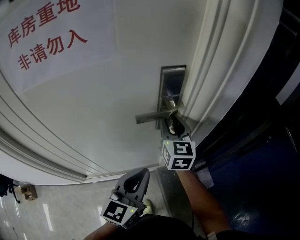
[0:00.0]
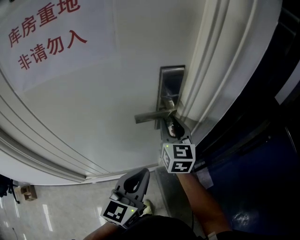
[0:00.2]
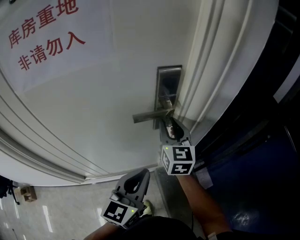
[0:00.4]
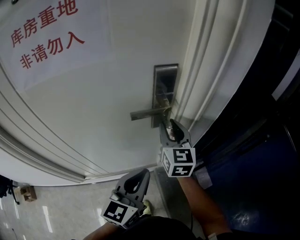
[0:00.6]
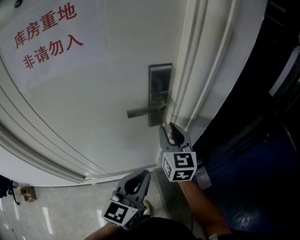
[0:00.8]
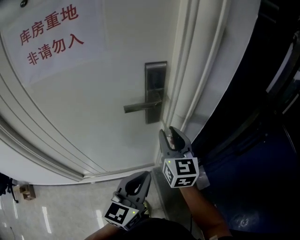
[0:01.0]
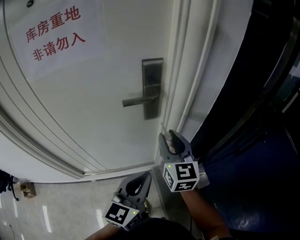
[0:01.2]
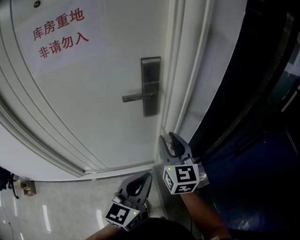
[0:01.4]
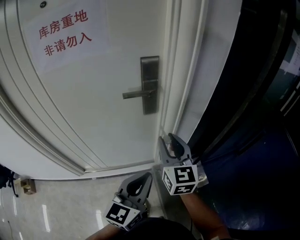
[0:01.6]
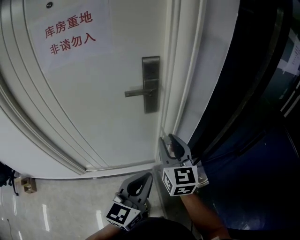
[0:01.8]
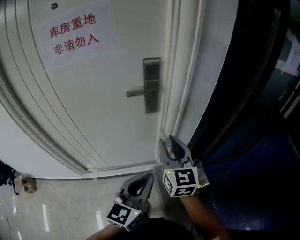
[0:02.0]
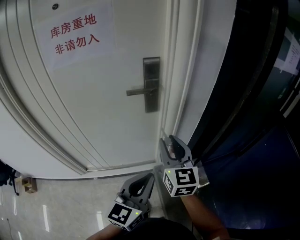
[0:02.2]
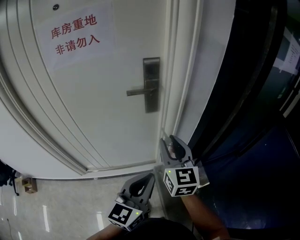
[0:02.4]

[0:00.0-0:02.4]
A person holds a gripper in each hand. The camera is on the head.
0:00.0 to 0:01.2: The two grippers go roughly 15 cm backward and to the right.
0:01.2 to 0:02.4: Both grippers move backward, approximately 10 cm.

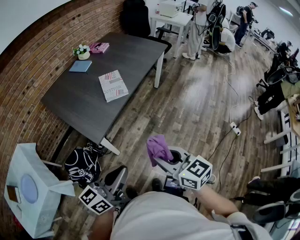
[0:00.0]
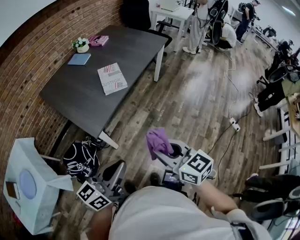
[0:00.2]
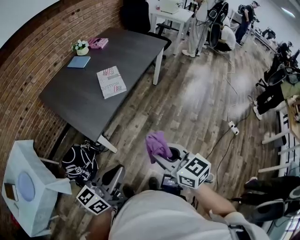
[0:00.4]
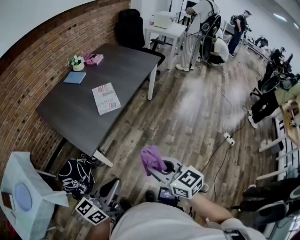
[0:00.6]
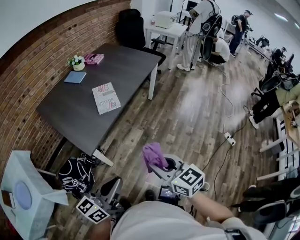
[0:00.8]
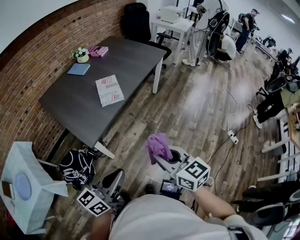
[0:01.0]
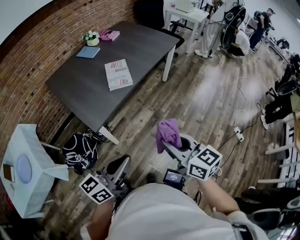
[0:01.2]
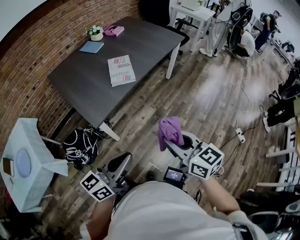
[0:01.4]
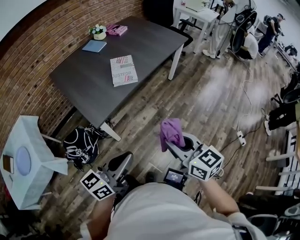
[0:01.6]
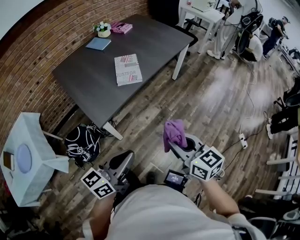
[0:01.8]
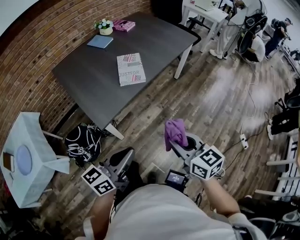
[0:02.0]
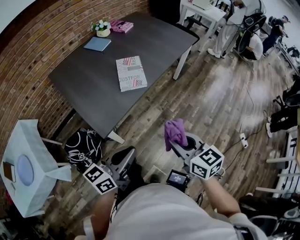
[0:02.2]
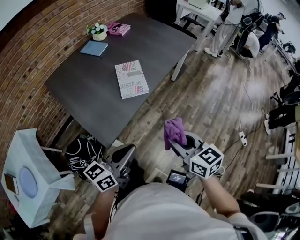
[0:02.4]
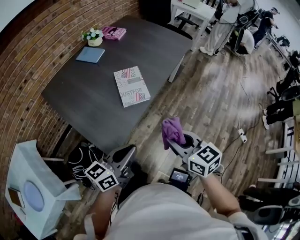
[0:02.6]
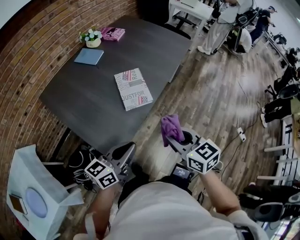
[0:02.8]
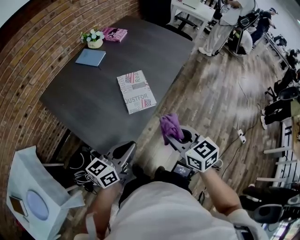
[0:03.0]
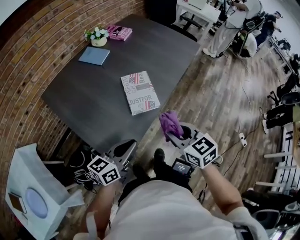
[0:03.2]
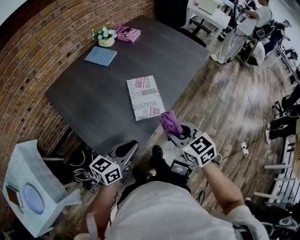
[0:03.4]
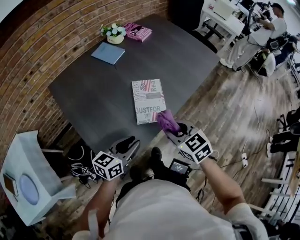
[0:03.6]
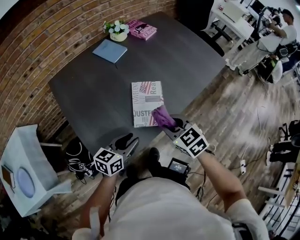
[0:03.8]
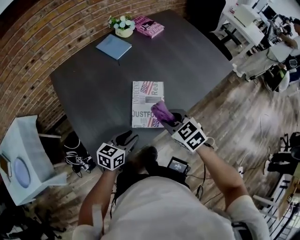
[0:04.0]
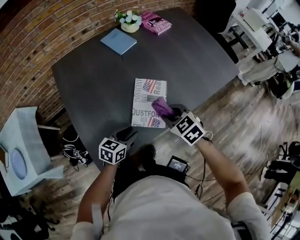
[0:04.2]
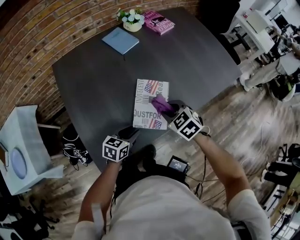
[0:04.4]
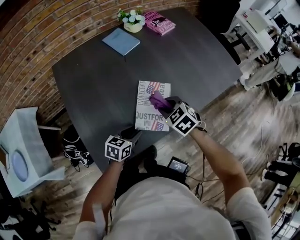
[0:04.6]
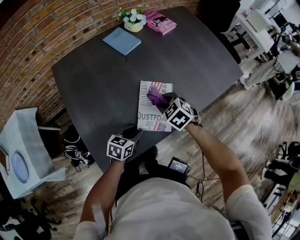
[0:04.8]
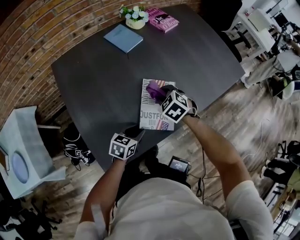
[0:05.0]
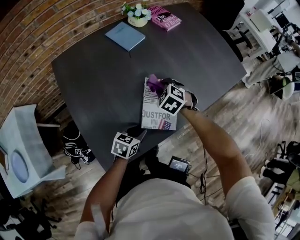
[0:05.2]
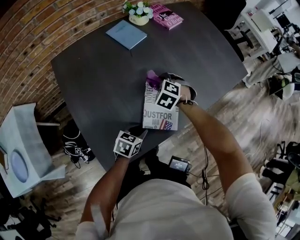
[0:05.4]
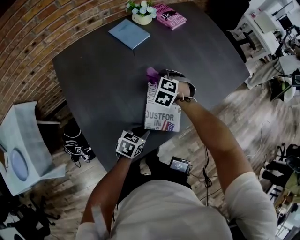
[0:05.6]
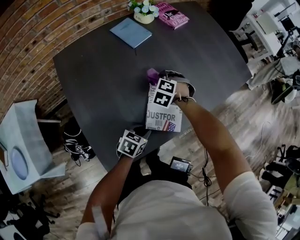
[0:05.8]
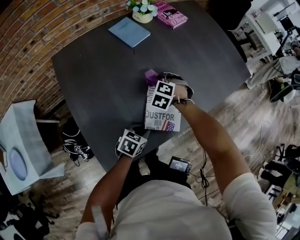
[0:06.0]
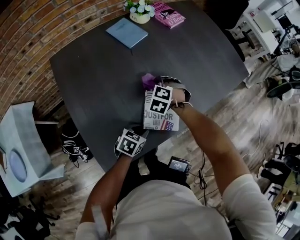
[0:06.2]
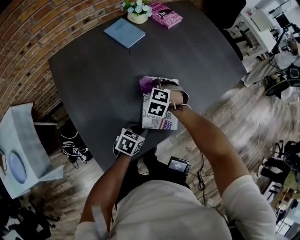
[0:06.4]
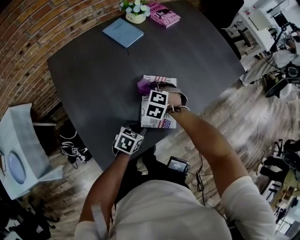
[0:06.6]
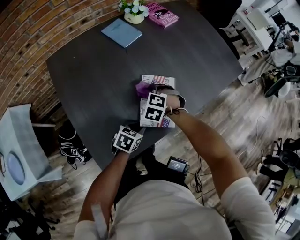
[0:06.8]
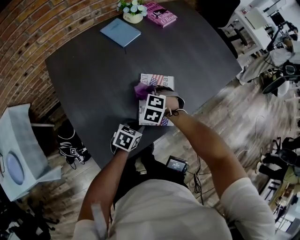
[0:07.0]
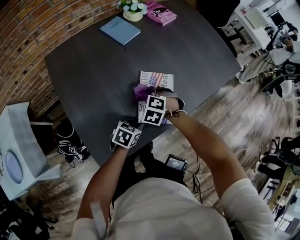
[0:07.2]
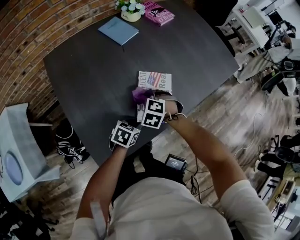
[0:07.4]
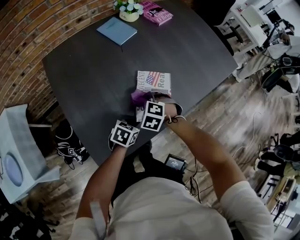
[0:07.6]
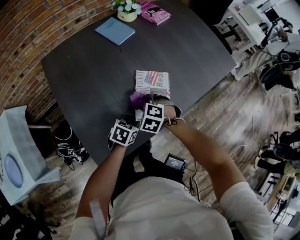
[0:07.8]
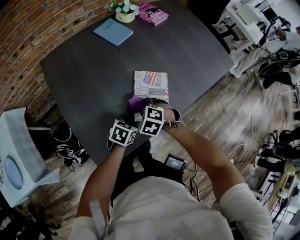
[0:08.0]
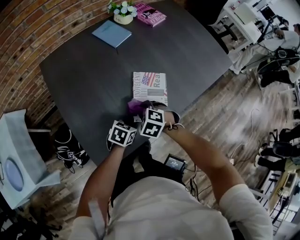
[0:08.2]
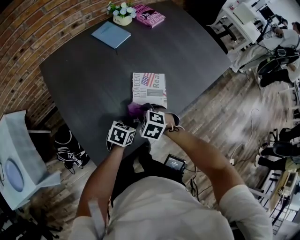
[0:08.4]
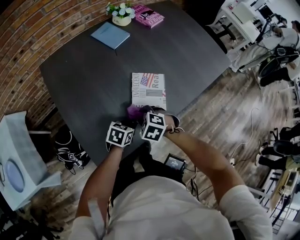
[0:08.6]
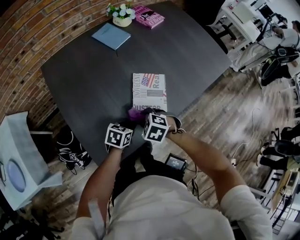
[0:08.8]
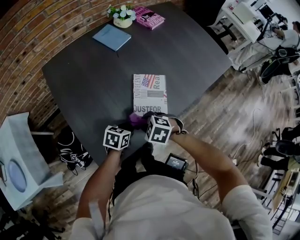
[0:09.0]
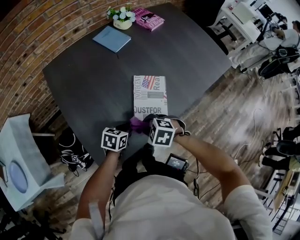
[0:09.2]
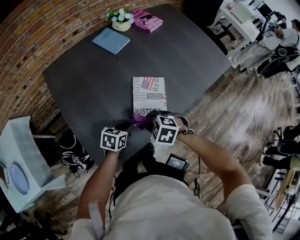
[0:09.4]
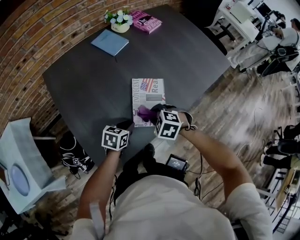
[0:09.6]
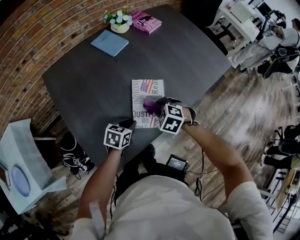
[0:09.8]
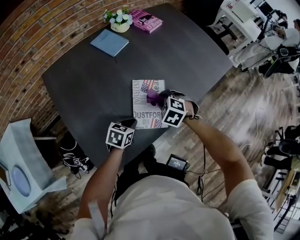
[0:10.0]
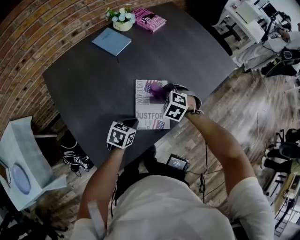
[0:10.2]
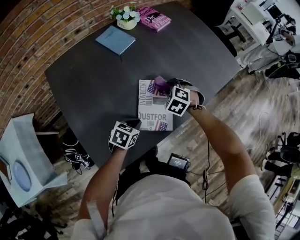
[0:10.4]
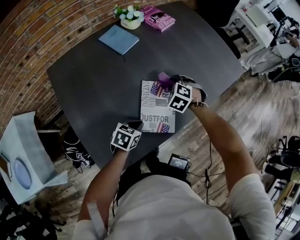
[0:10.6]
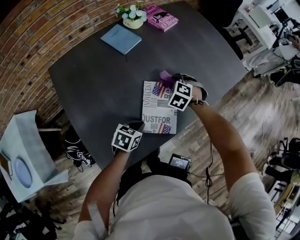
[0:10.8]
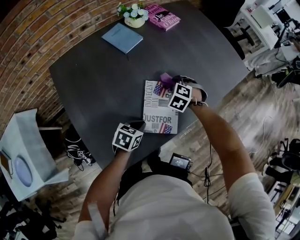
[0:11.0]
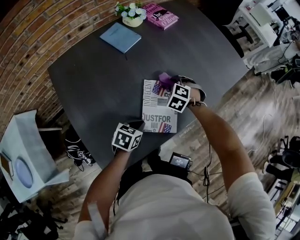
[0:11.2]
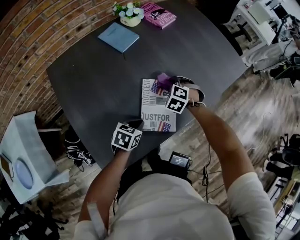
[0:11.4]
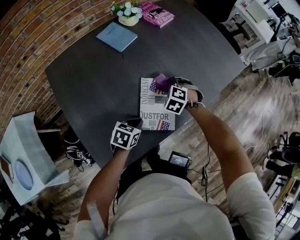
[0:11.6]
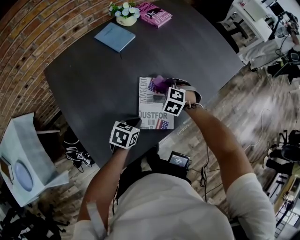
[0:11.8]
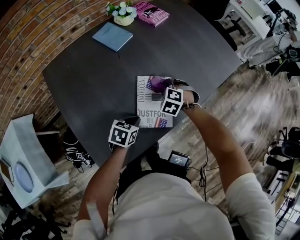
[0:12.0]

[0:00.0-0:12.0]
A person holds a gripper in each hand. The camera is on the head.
0:00.0 to 0:01.6: The right gripper moves to the right and forward, about 10 cm, while the left gripper travels to the right by some 5 cm.
0:01.6 to 0:03.0: Both grippers move forward and to the left, about 30 cm.
0:03.0 to 0:04.4: The right gripper heads forward and downward, covering some 30 cm, and changes its angle by roughly 50 degrees, while the left gripper shifts about 25 cm downward and forward, angles its fingers downward, by approximately 30 degrees, and opens its fingers.
0:04.4 to 0:06.0: The right gripper shifts by approximately 20 cm, and changes its angle by approximately 40 degrees.
0:06.0 to 0:07.6: The right gripper heads backward, covering about 10 cm.
0:07.6 to 0:09.0: The right gripper moves roughly 10 cm, and turns by some 20 degrees.
0:09.0 to 0:10.4: The left gripper changes place by some 5 cm, while the right gripper shifts by some 25 cm, and rotates roughly 30 degrees.
0:10.4 to 0:12.0: The grippers make only small movements.

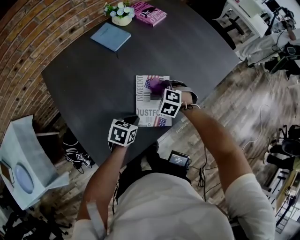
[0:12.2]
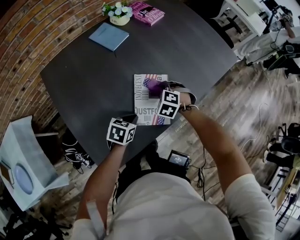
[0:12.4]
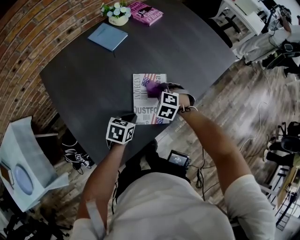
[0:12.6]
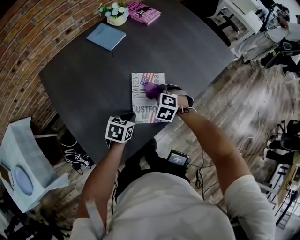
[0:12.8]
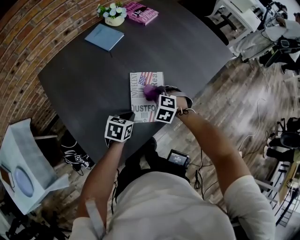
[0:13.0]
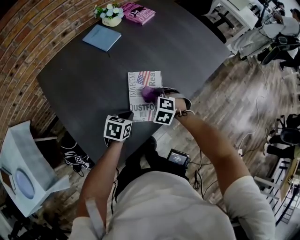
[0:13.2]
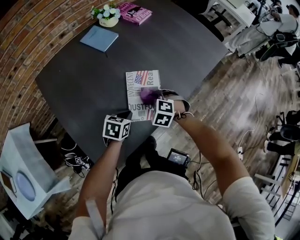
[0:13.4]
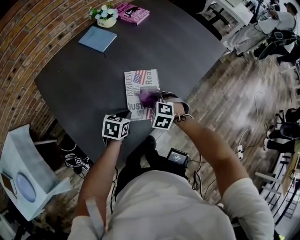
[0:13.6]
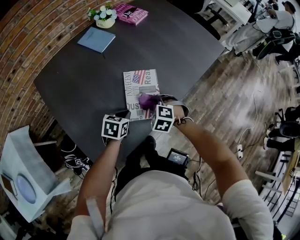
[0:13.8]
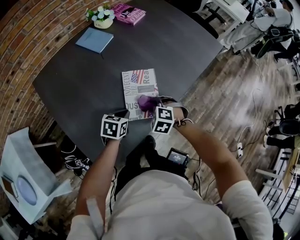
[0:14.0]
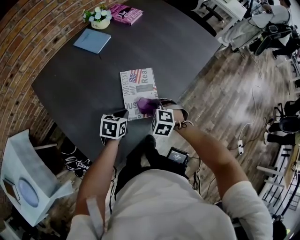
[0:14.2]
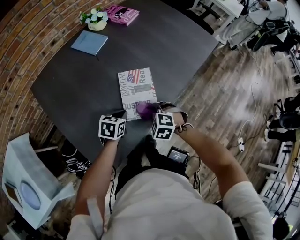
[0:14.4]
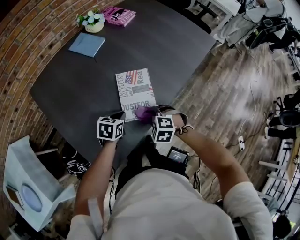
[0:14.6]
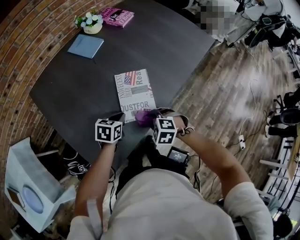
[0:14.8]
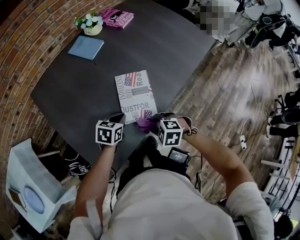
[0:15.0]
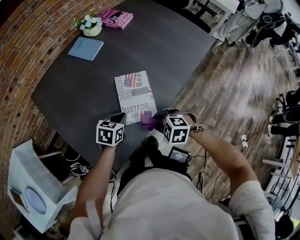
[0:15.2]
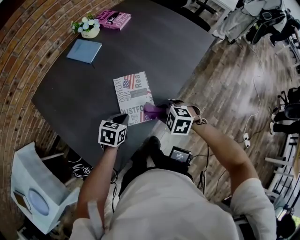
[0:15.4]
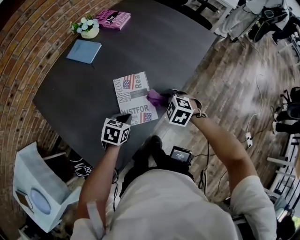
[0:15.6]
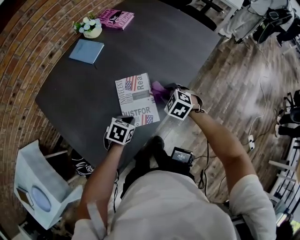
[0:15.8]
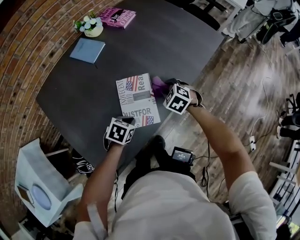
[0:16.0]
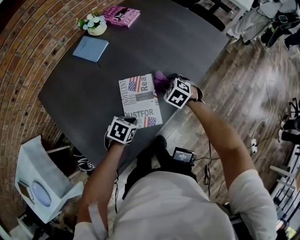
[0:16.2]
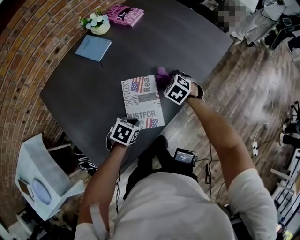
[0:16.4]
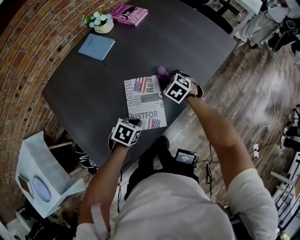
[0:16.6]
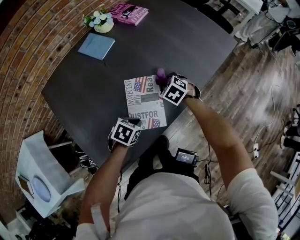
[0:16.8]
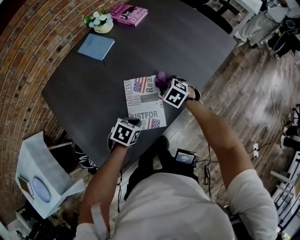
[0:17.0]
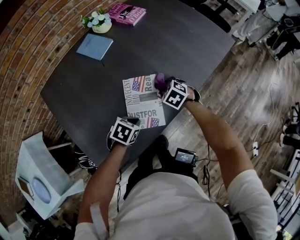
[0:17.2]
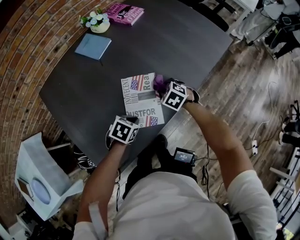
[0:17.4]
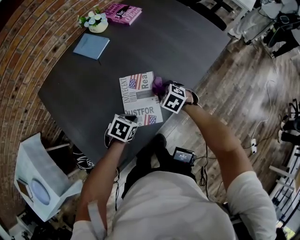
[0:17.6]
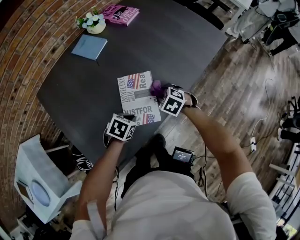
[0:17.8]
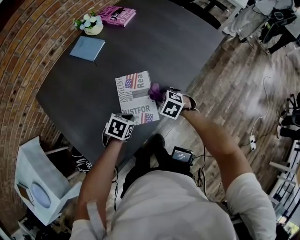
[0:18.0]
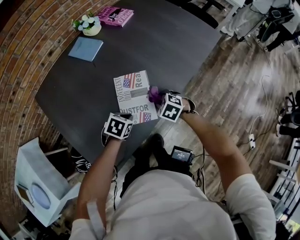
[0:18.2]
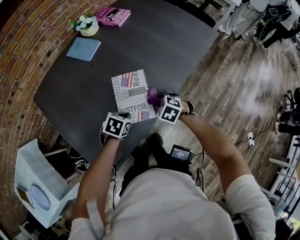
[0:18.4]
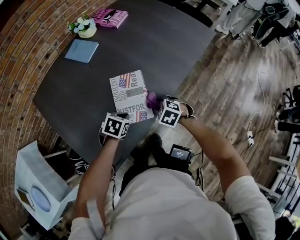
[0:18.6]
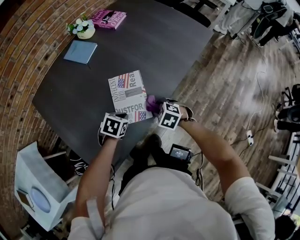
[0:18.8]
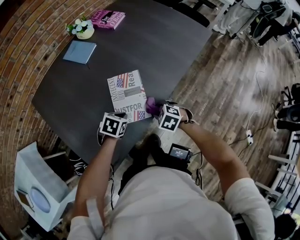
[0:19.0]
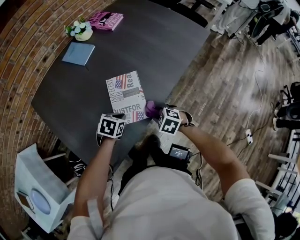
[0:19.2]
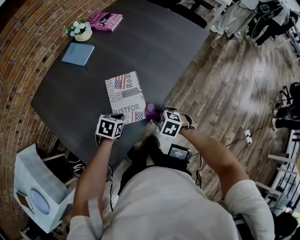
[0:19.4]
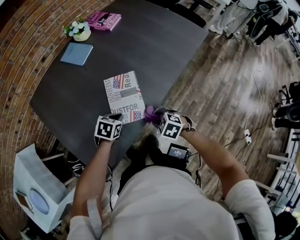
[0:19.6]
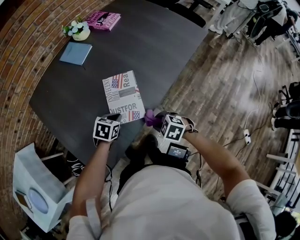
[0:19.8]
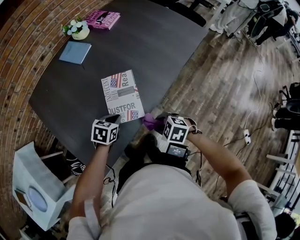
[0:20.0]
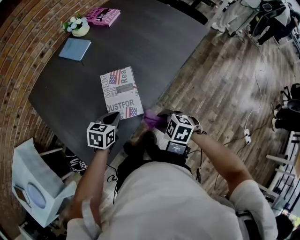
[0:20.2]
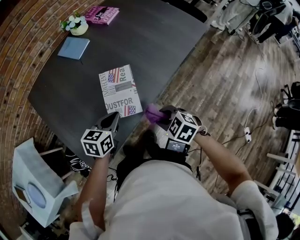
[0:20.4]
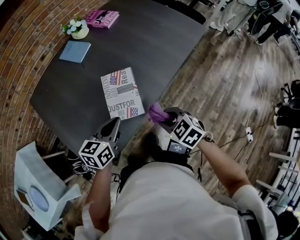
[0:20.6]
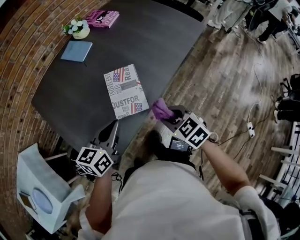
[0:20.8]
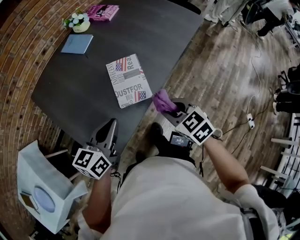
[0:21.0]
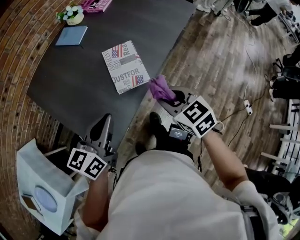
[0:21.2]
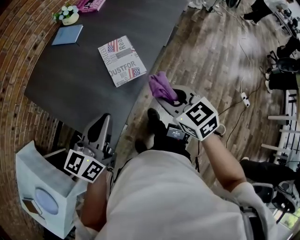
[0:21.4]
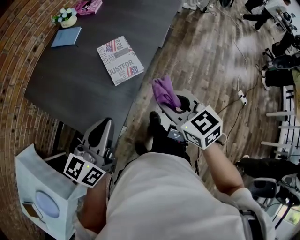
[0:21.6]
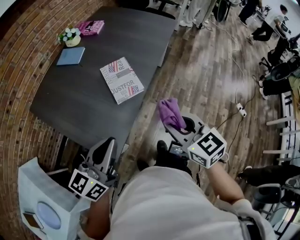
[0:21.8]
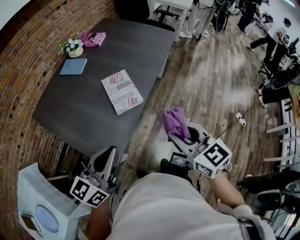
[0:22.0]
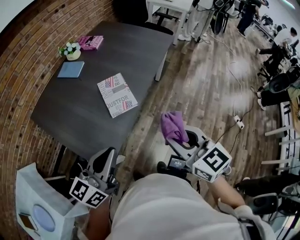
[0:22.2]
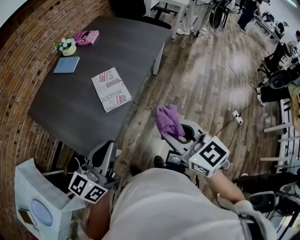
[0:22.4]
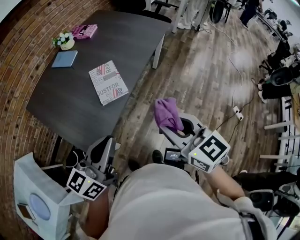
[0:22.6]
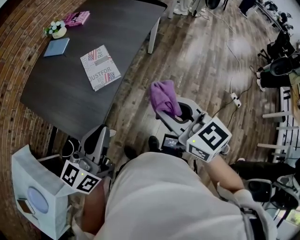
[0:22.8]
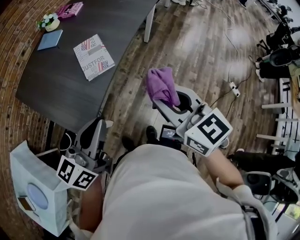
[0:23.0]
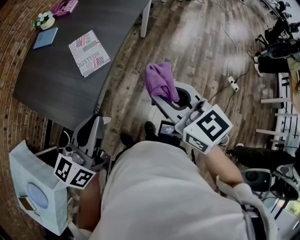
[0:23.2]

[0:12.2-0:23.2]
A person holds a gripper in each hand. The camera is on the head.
0:12.2 to 0:13.8: The right gripper is displaced backward by roughly 10 cm.
0:13.8 to 0:15.4: The right gripper ends up roughly 10 cm from where it was.
0:15.4 to 0:17.0: The right gripper shifts about 20 cm forward.
0:17.0 to 0:18.4: The right gripper heads backward, covering approximately 10 cm.
0:18.4 to 0:20.0: The right gripper shifts roughly 15 cm backward.
0:20.0 to 0:21.6: The two grippers go some 25 cm upward. The right gripper points its fingers some 30 degrees further upward. The left gripper points its fingers roughly 50 degrees further upward.
0:21.6 to 0:23.2: The right gripper travels to the right, upward and backward by some 15 cm. The left gripper travels to the right and backward by roughly 15 cm.
